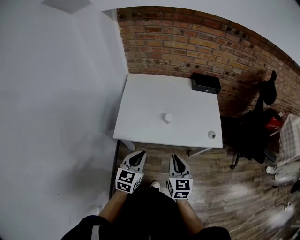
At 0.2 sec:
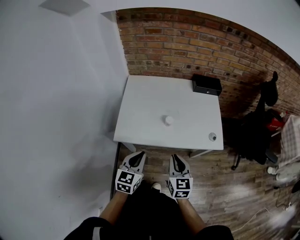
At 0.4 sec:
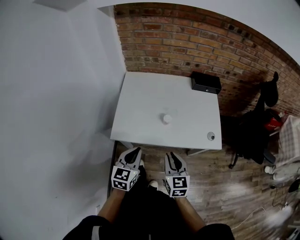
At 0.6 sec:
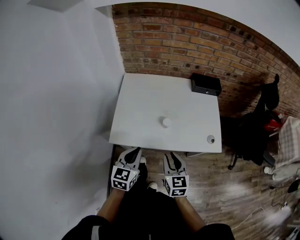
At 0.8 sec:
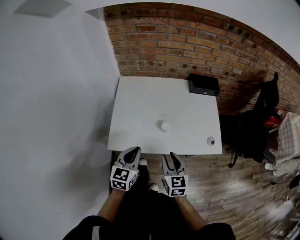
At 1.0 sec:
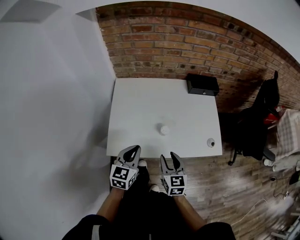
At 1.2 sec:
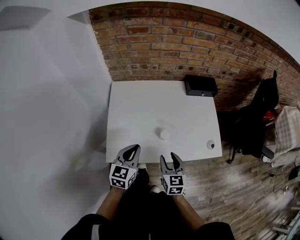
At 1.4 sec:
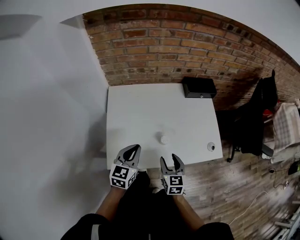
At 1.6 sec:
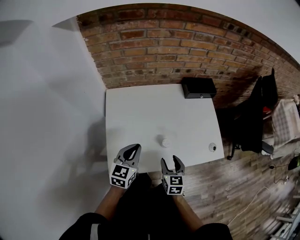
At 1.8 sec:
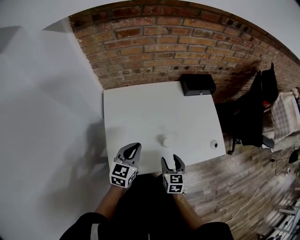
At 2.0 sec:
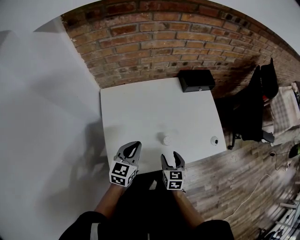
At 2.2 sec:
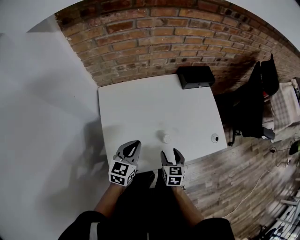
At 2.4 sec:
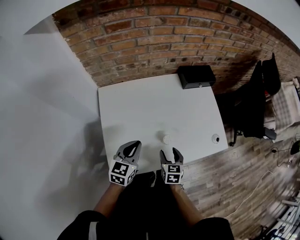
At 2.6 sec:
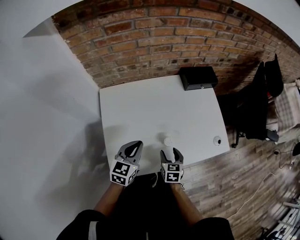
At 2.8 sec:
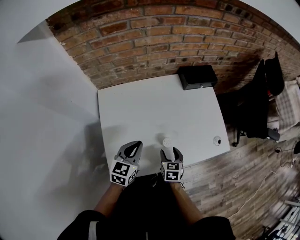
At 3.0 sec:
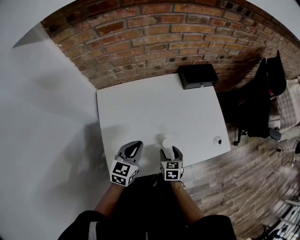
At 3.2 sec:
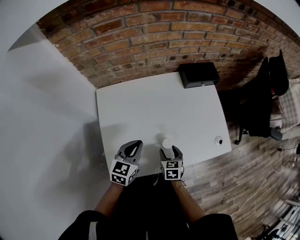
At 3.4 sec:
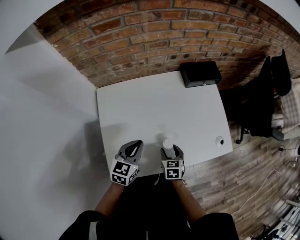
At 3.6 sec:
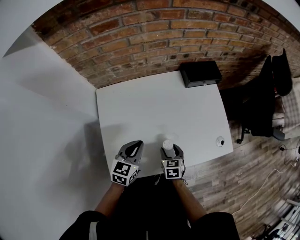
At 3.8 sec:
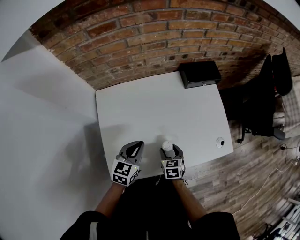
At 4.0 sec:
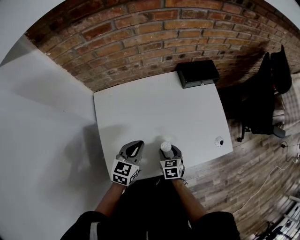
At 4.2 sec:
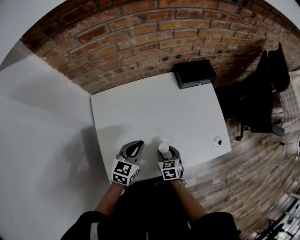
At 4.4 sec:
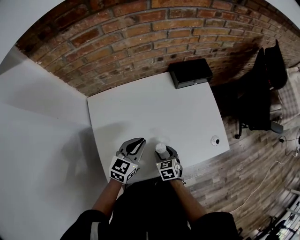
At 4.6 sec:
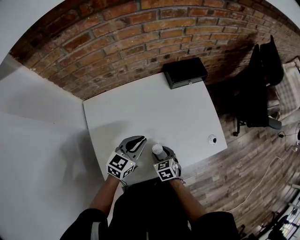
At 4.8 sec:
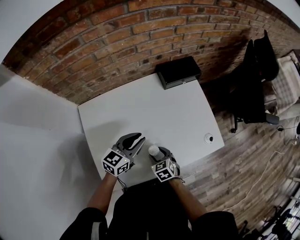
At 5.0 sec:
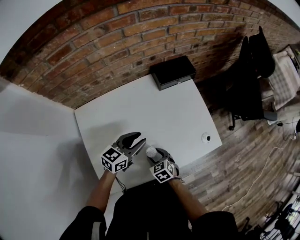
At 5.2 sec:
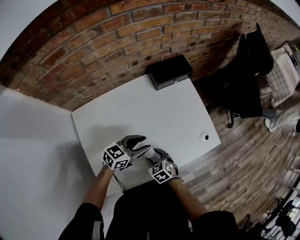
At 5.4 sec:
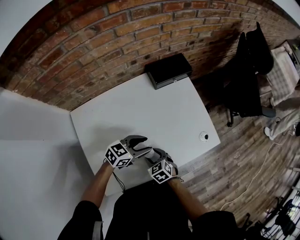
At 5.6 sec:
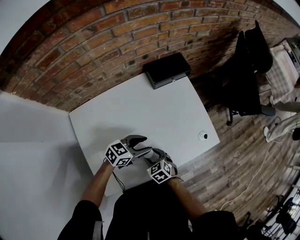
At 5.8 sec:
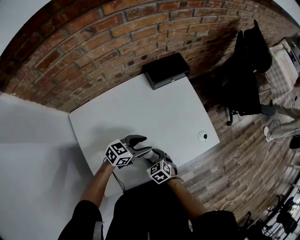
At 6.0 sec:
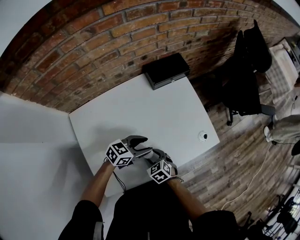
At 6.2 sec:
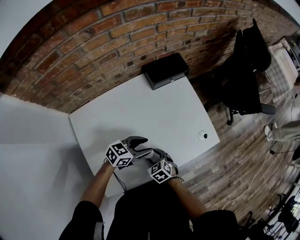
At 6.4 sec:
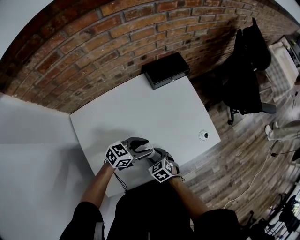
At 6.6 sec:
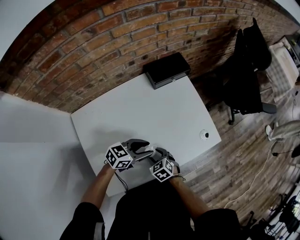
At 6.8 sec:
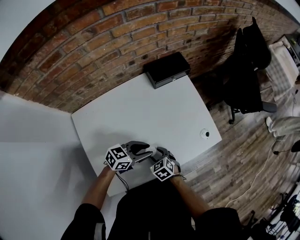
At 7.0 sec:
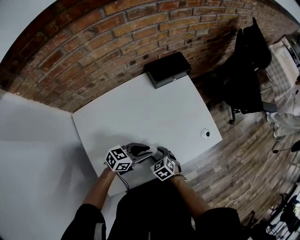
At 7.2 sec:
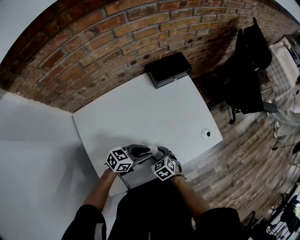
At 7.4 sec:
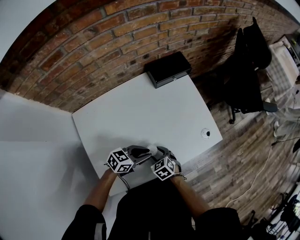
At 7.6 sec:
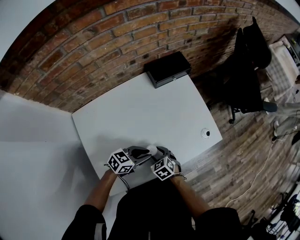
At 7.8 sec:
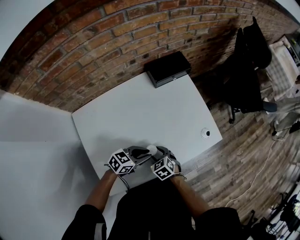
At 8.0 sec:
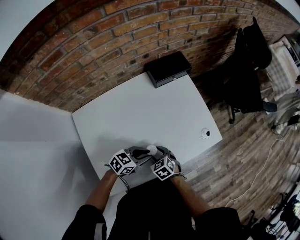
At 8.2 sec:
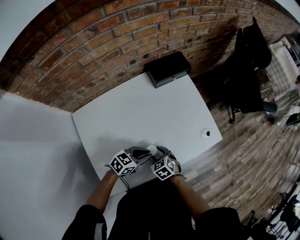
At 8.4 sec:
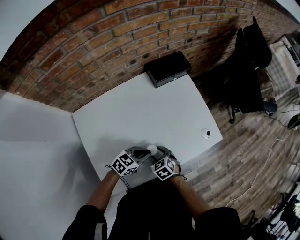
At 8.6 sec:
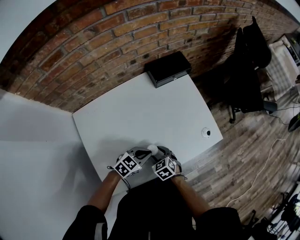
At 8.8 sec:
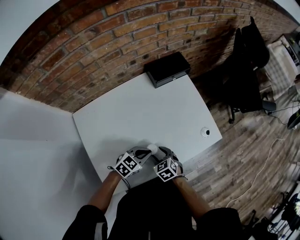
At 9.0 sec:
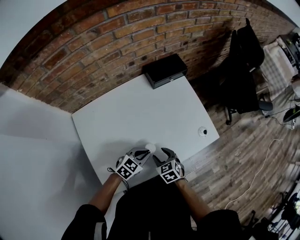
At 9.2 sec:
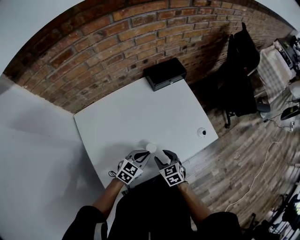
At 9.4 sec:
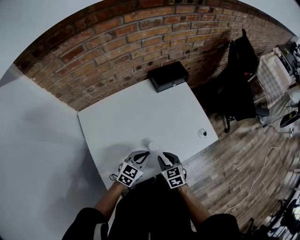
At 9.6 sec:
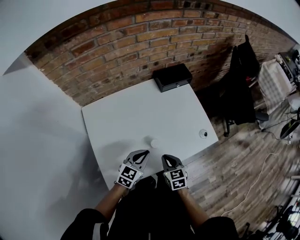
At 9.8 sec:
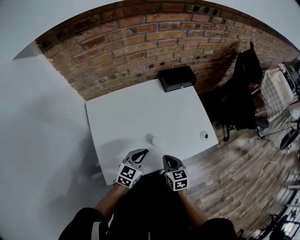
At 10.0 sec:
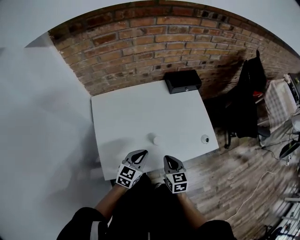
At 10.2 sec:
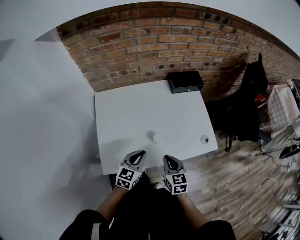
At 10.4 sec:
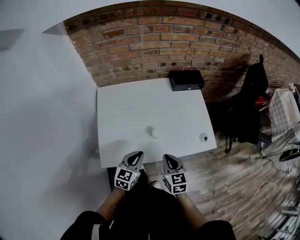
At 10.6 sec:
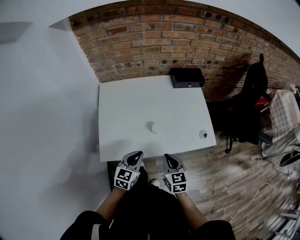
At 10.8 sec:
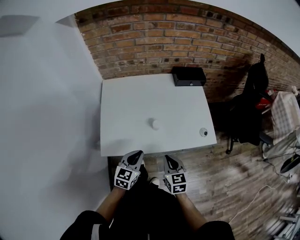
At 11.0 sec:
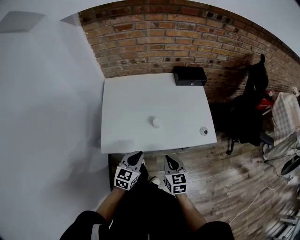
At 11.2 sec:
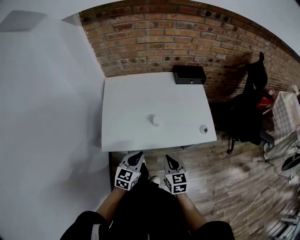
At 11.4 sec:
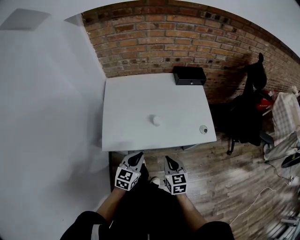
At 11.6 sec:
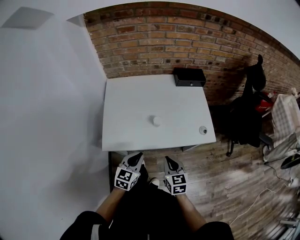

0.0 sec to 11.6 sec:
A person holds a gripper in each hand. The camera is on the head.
0.0 sec to 1.4 sec: The right gripper is displaced forward and downward by some 20 cm, and opens up; the left gripper travels forward by some 25 cm.
1.4 sec to 2.8 sec: The left gripper shifts roughly 10 cm forward; the right gripper travels downward and forward by roughly 15 cm.
2.8 sec to 4.4 sec: The left gripper goes approximately 10 cm forward and to the right.
4.4 sec to 5.8 sec: The left gripper travels to the right and downward by about 10 cm, rotates approximately 40 degrees, and opens its fingers.
5.8 sec to 7.2 sec: The left gripper shifts roughly 5 cm backward, and closes.
7.2 sec to 8.8 sec: The left gripper swivels approximately 20 degrees, and closes.
8.8 sec to 10.2 sec: The right gripper goes about 20 cm upward and backward, changes its angle by roughly 20 degrees, and closes its fingers. Meanwhile the left gripper moves backward and upward, about 15 cm, and turns by approximately 50 degrees.
10.2 sec to 11.6 sec: Both grippers move backward, approximately 15 cm.

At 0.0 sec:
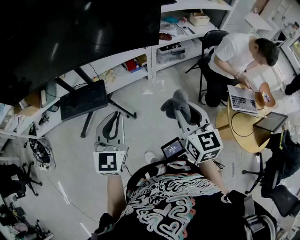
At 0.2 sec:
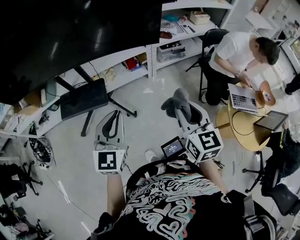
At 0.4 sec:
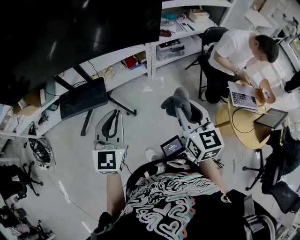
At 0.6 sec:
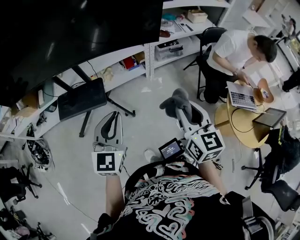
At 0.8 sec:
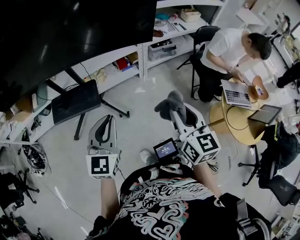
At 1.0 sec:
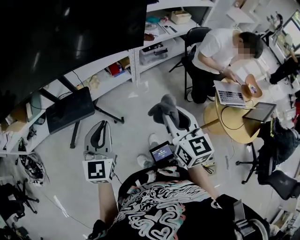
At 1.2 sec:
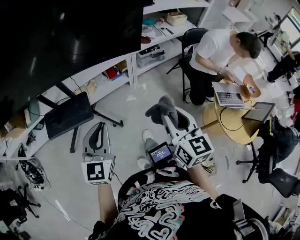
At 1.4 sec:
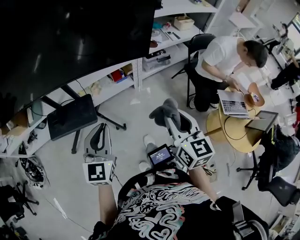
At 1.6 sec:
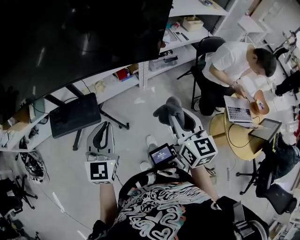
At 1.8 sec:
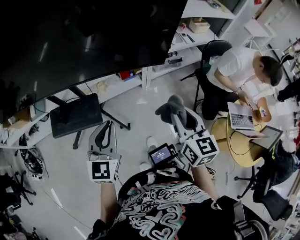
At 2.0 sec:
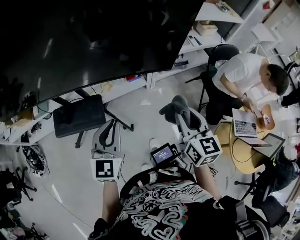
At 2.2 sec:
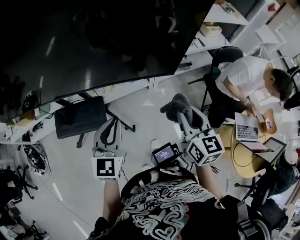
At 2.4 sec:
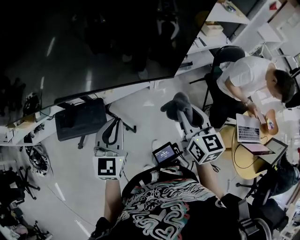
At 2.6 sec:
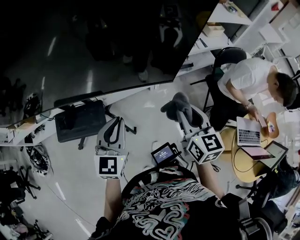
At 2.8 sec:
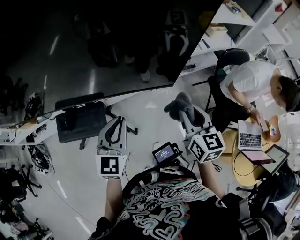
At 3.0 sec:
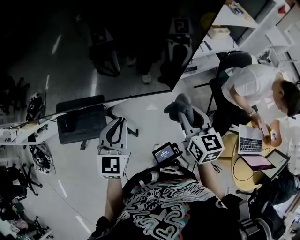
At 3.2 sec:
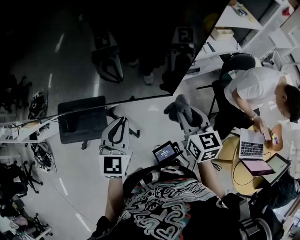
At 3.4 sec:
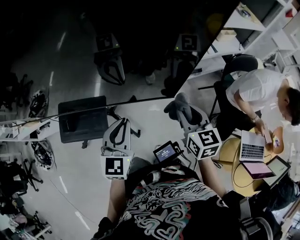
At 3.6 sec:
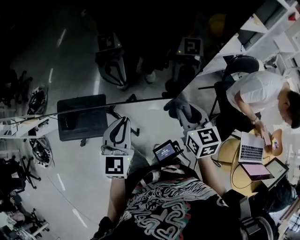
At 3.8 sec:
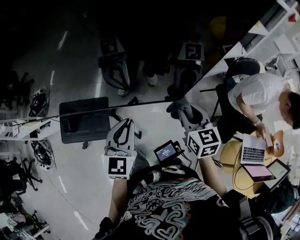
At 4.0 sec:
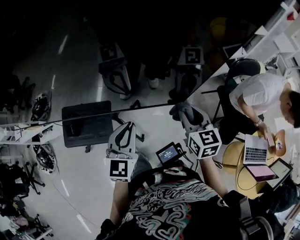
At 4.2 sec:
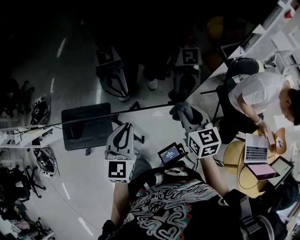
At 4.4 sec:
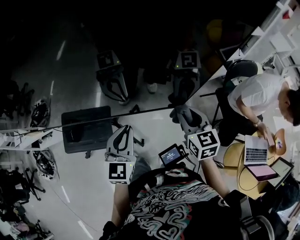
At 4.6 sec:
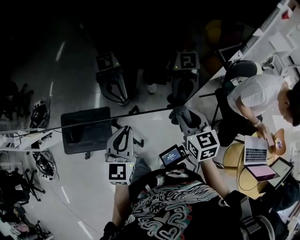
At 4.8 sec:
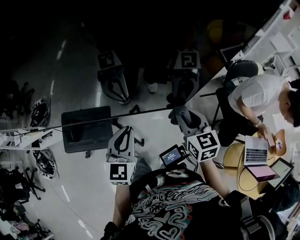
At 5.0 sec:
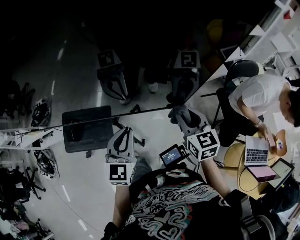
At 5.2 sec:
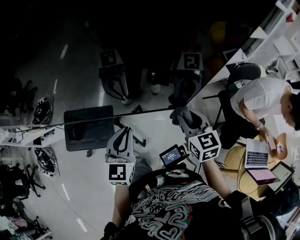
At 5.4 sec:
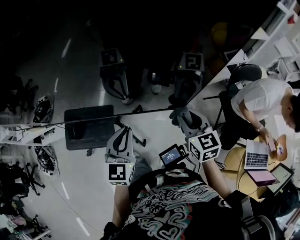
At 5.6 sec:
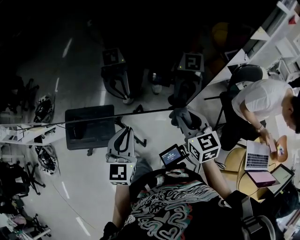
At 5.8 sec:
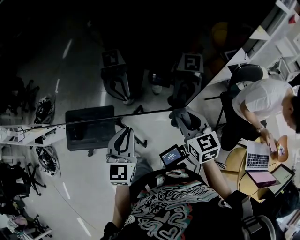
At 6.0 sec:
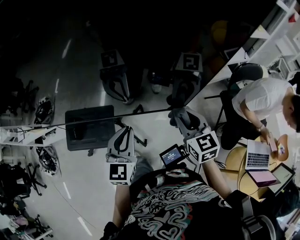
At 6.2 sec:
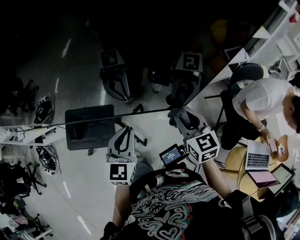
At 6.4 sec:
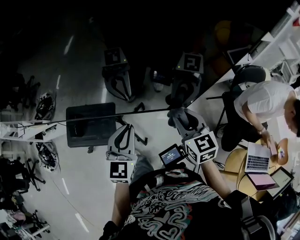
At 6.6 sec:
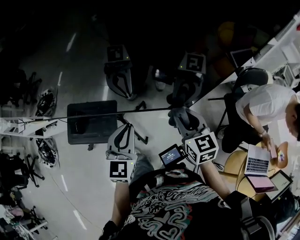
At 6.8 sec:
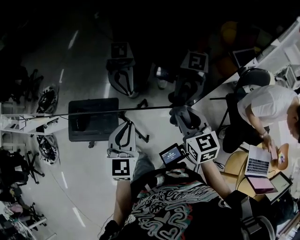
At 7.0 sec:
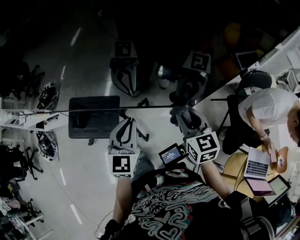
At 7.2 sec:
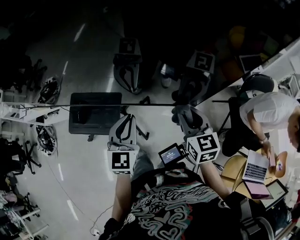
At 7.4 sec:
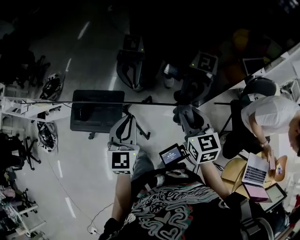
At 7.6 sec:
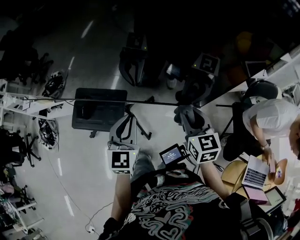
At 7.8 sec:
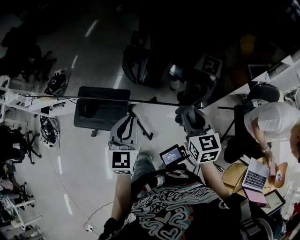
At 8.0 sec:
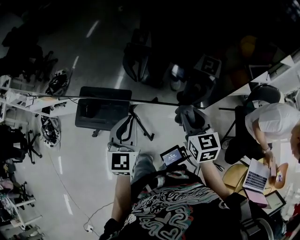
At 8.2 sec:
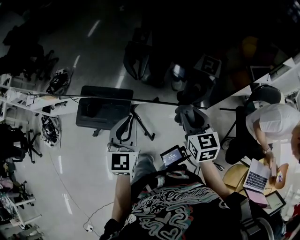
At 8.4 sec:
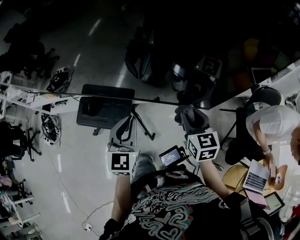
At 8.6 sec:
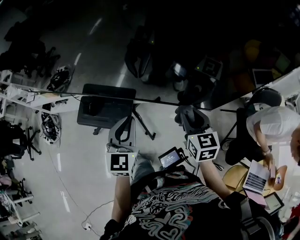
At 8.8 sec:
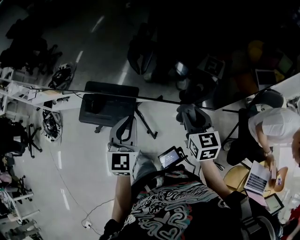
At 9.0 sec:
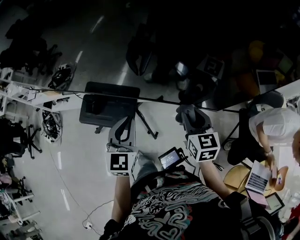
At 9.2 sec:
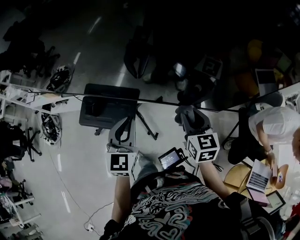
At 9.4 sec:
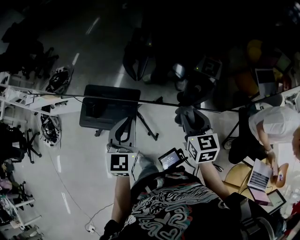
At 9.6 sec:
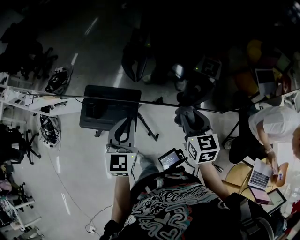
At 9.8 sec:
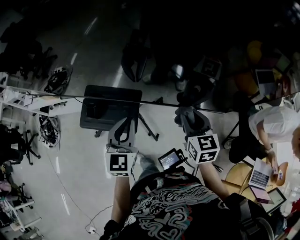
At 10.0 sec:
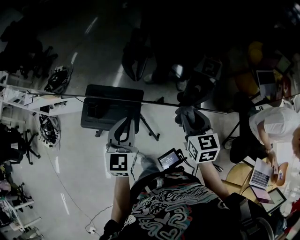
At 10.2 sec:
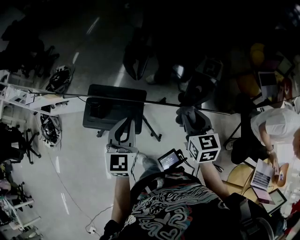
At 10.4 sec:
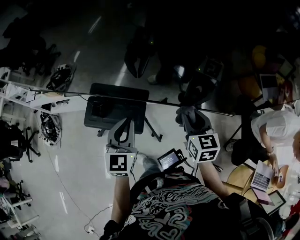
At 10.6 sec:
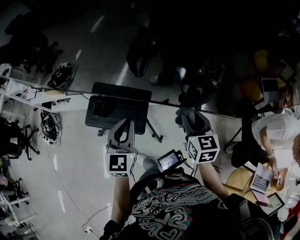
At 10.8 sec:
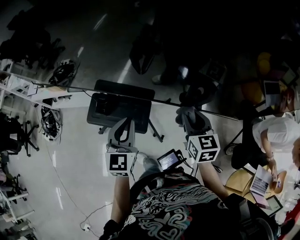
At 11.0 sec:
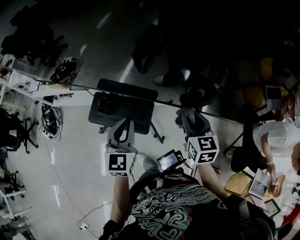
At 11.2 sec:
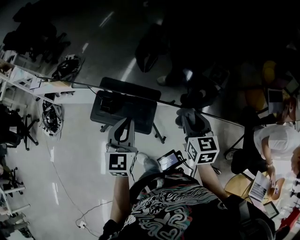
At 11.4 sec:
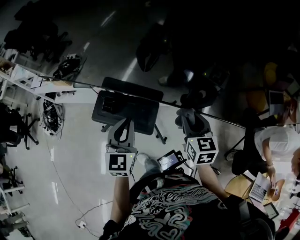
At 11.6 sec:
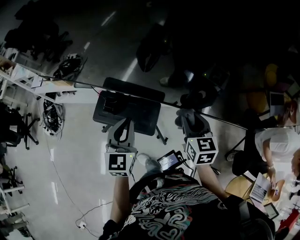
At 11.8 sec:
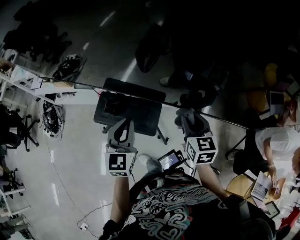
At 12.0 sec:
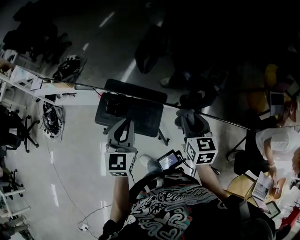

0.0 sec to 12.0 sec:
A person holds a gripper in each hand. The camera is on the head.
0.0 sec to 1.6 sec: Both grippers move forward, roughly 10 cm.
1.6 sec to 3.0 sec: Both grippers travel together forward, roughly 20 cm.
3.0 sec to 4.4 sec: The right gripper moves forward, about 5 cm.
4.4 sec to 7.6 sec: The grippers make only small movements.
7.6 sec to 9.0 sec: Both grippers travel together to the left, approximately 10 cm.
9.0 sec to 10.4 sec: Both grippers travel together to the left, approximately 10 cm.
10.4 sec to 12.0 sec: Both grippers travel together to the left, about 15 cm.
